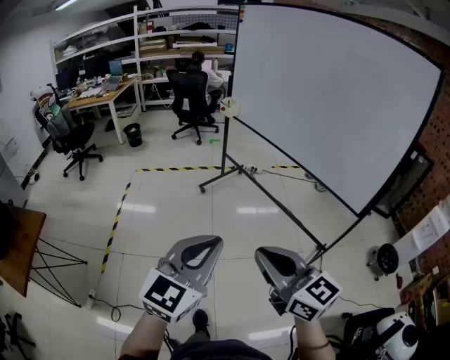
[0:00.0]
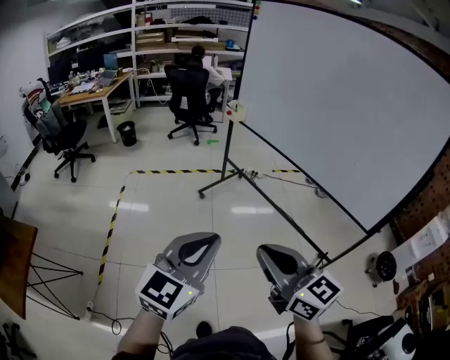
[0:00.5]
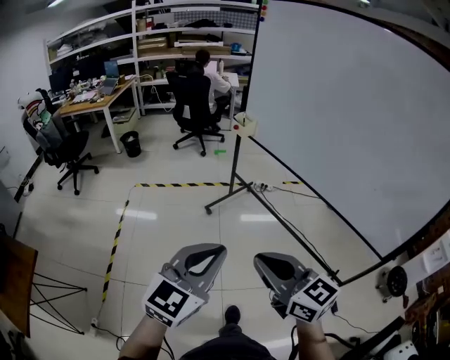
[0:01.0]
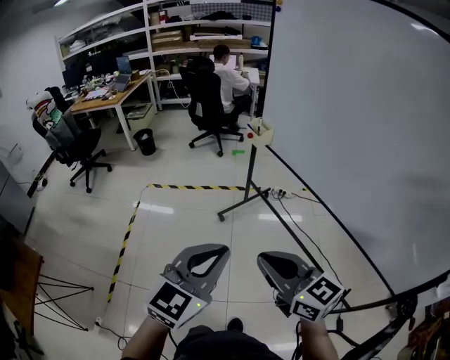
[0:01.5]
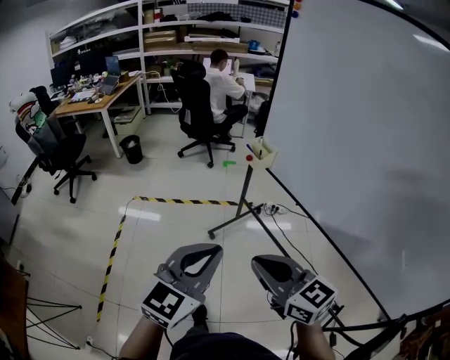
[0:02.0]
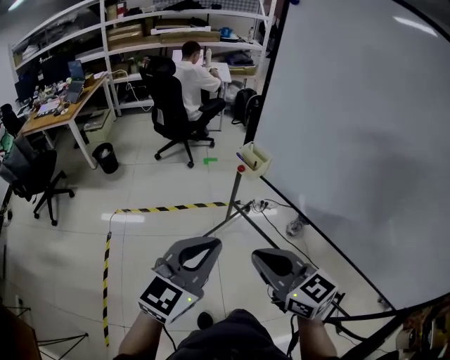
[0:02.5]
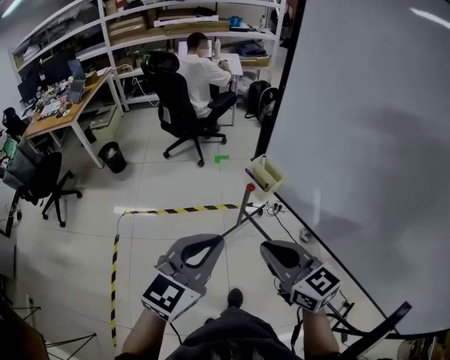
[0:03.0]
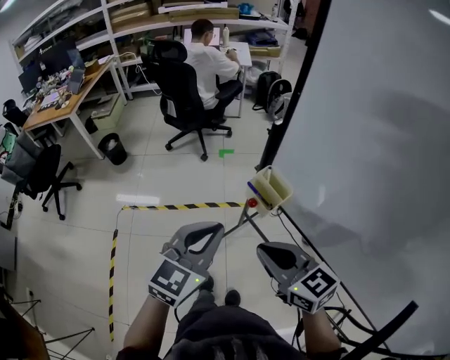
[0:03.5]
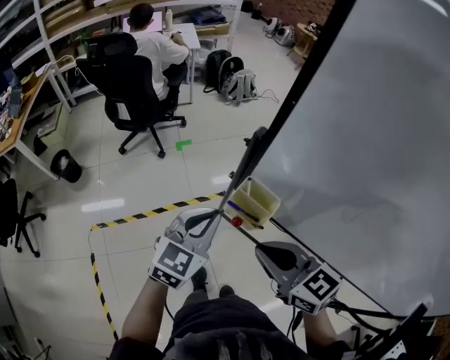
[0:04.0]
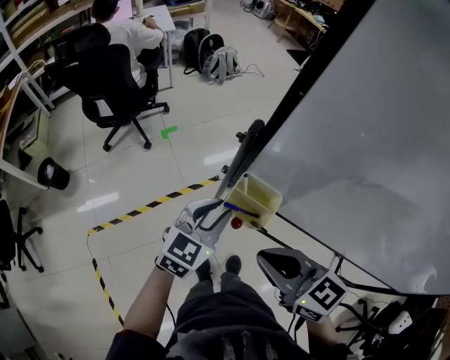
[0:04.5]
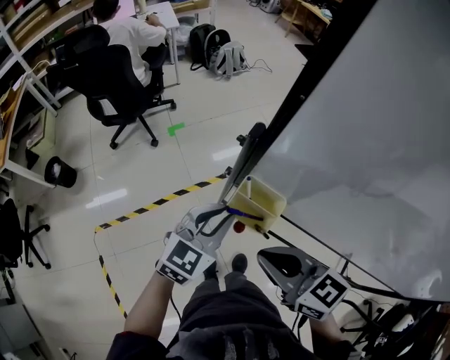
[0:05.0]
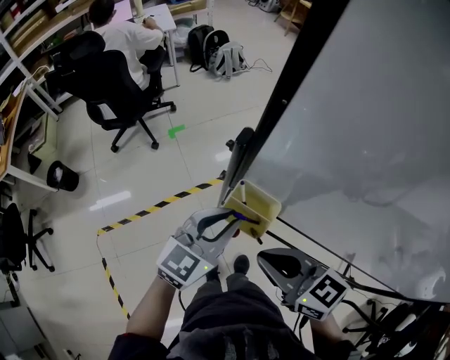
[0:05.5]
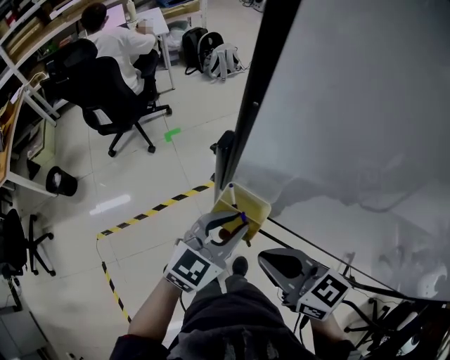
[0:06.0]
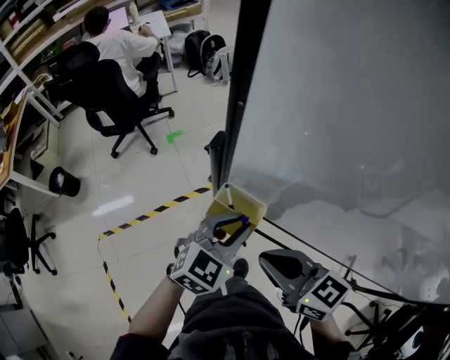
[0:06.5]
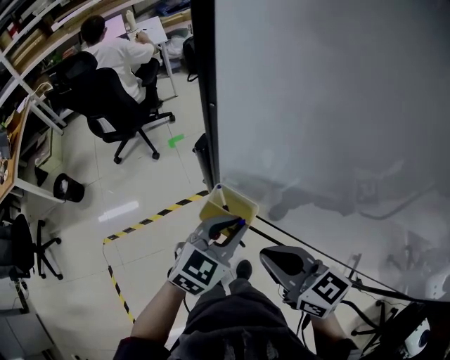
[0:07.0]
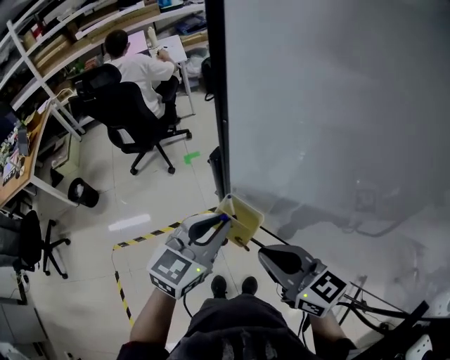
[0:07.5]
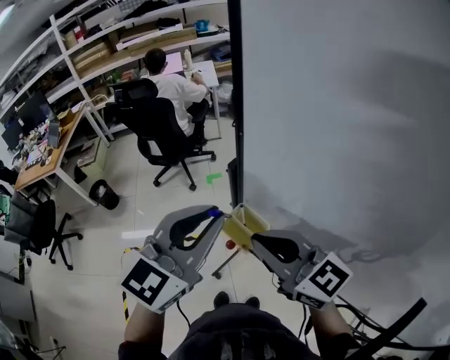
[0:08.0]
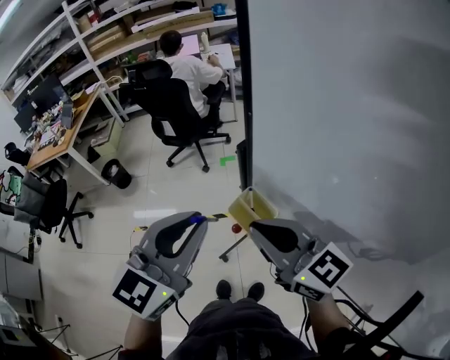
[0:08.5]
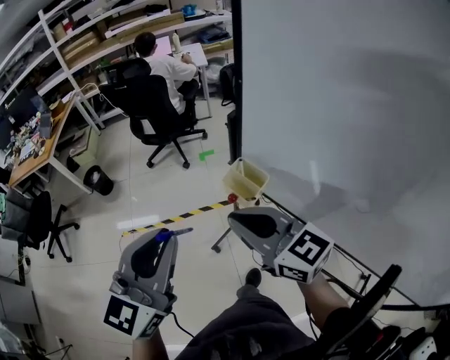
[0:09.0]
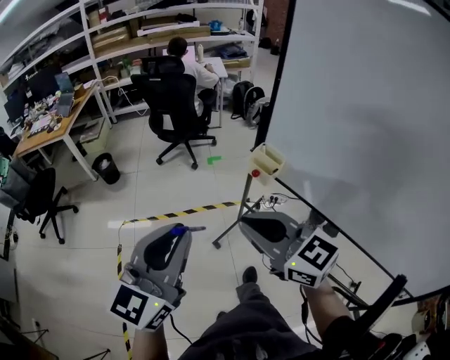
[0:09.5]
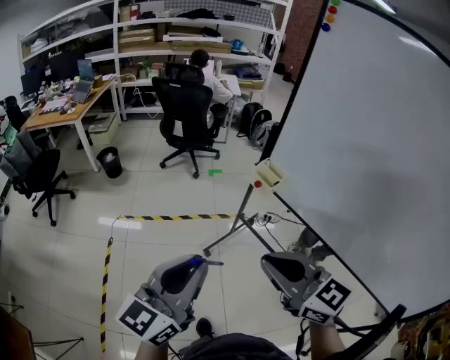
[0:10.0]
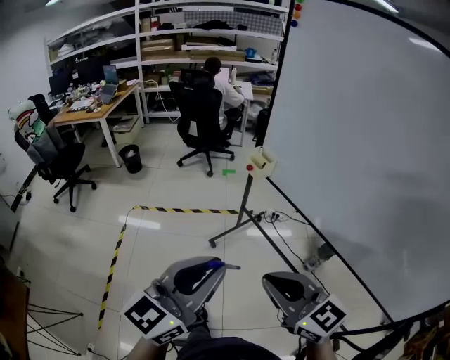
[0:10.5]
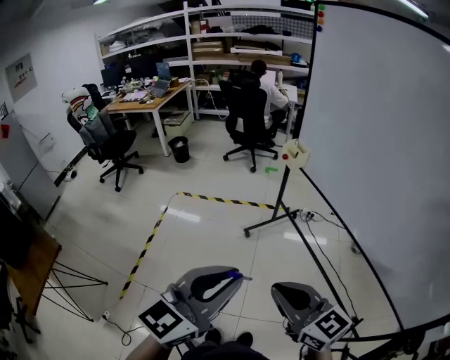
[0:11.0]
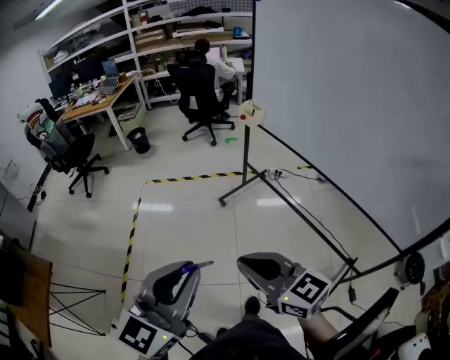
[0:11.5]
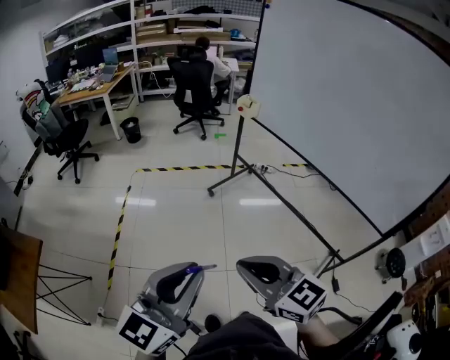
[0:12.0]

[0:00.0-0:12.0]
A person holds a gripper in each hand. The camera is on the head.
0:00.0 to 0:02.0: The two grippers travel together, forward, about 60 cm.
0:02.0 to 0:04.0: The pair of grippers is taken forward, approximately 50 cm. The right gripper swivels about 20 degrees. The left gripper changes its angle by some 20 degrees.
0:04.0 to 0:06.0: The left gripper goes some 10 cm to the right.
0:06.0 to 0:08.0: The left gripper heads upward, covering roughly 25 cm, and swivels approximately 30 degrees. The right gripper moves upward, some 15 cm, and turns by about 30 degrees.
0:08.0 to 0:10.0: Both grippers travel together backward and to the left, roughly 40 cm. The left gripper changes its angle by some 20 degrees.
0:10.0 to 0:12.0: The two grippers travel together, backward, approximately 50 cm.

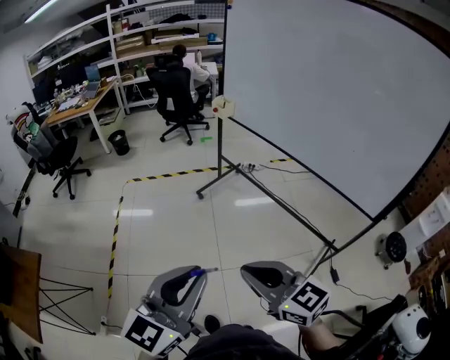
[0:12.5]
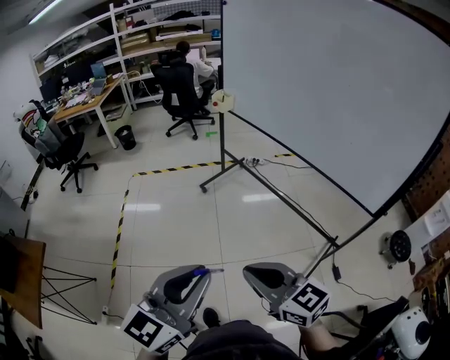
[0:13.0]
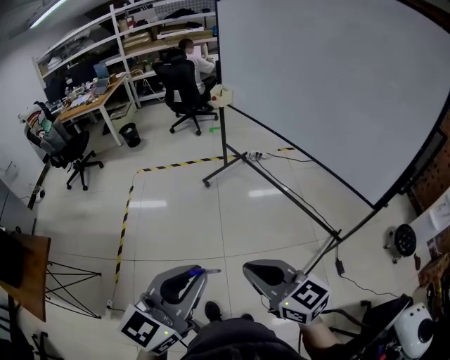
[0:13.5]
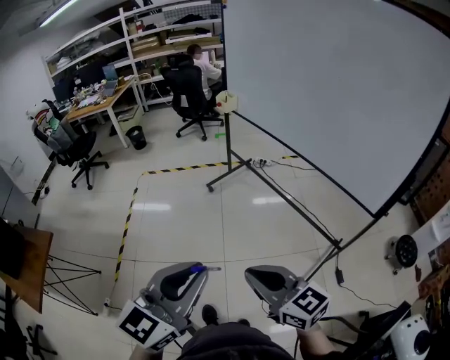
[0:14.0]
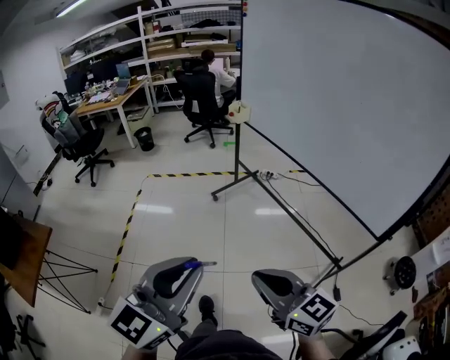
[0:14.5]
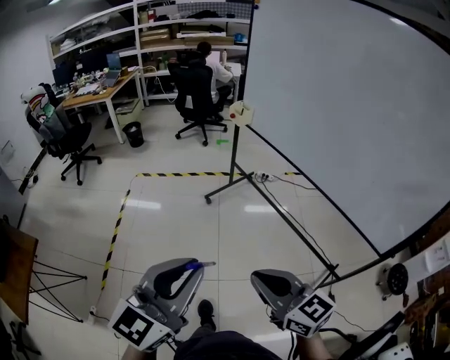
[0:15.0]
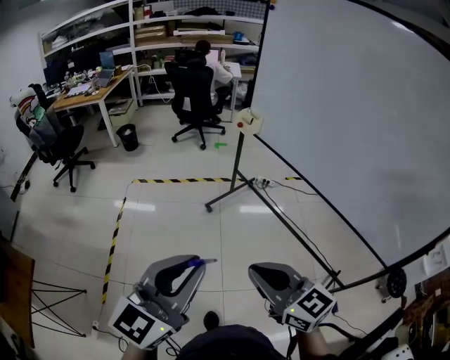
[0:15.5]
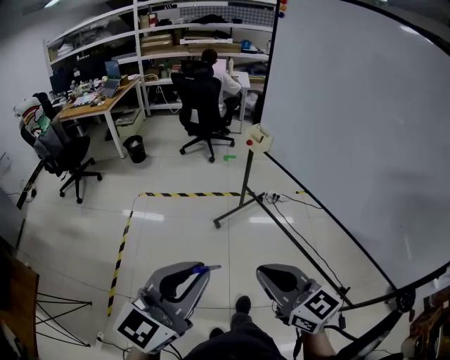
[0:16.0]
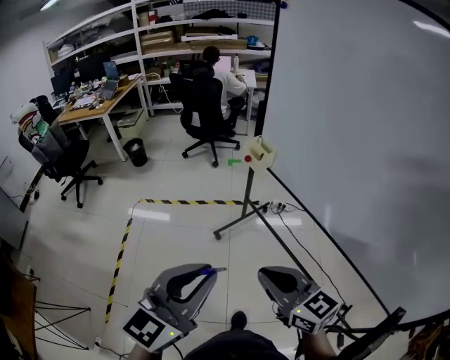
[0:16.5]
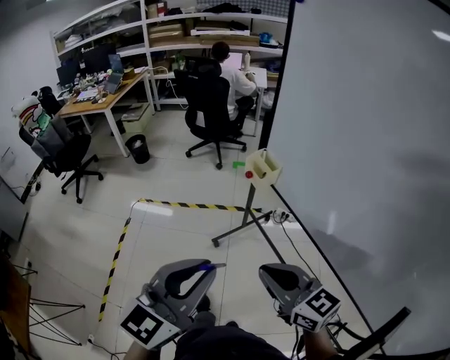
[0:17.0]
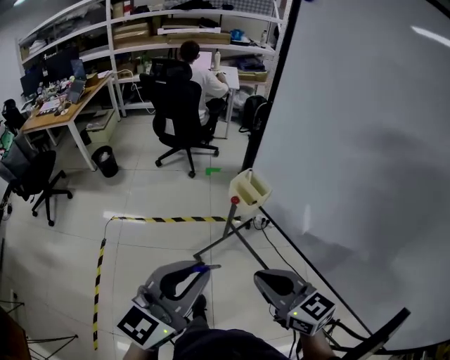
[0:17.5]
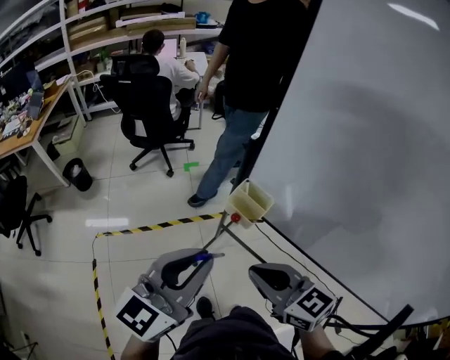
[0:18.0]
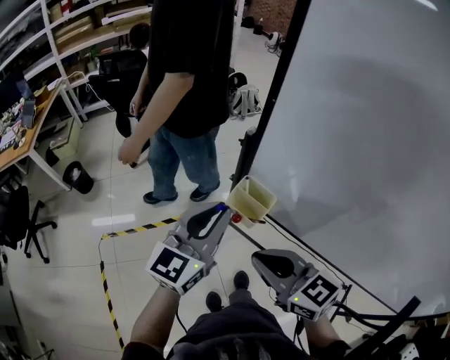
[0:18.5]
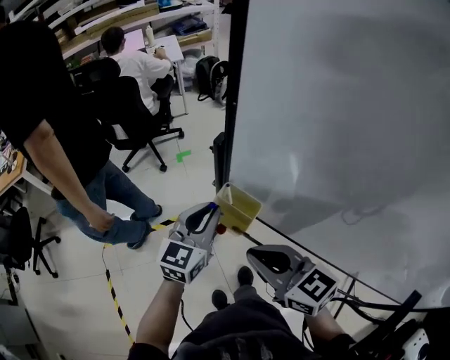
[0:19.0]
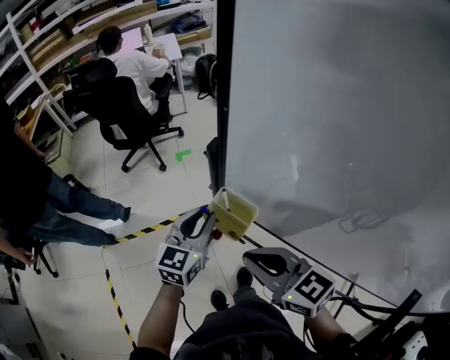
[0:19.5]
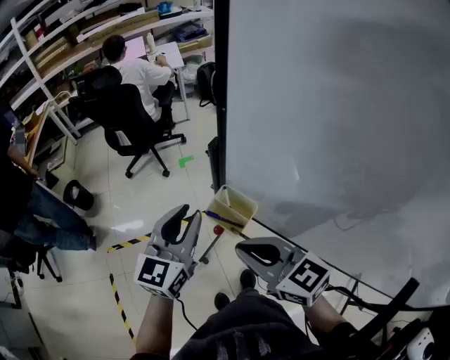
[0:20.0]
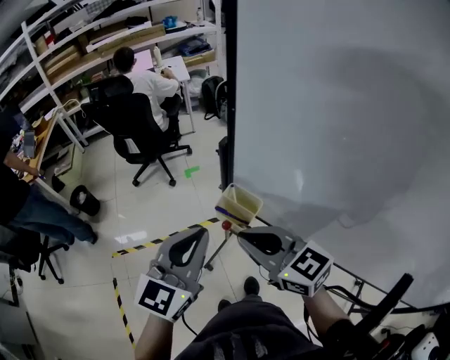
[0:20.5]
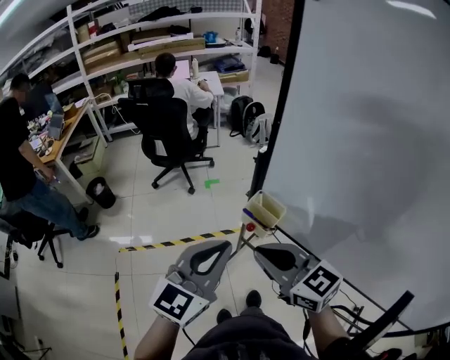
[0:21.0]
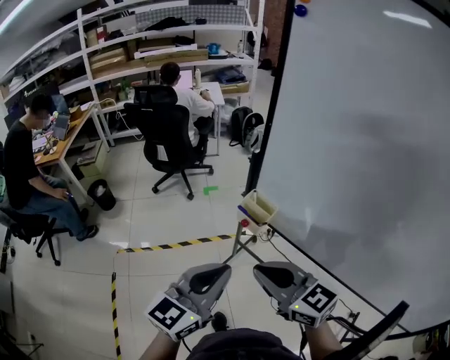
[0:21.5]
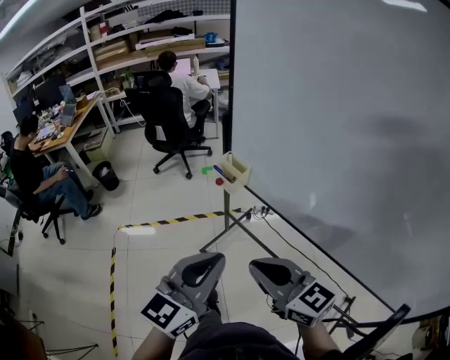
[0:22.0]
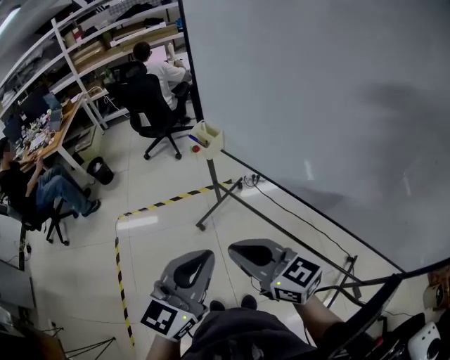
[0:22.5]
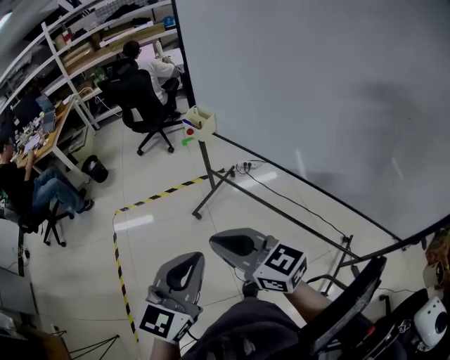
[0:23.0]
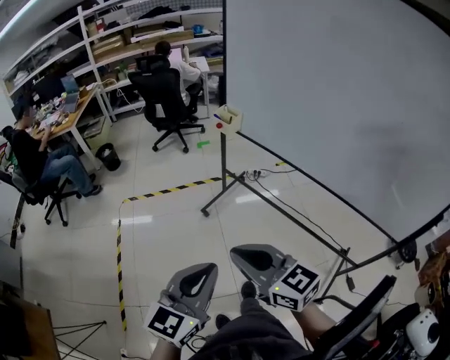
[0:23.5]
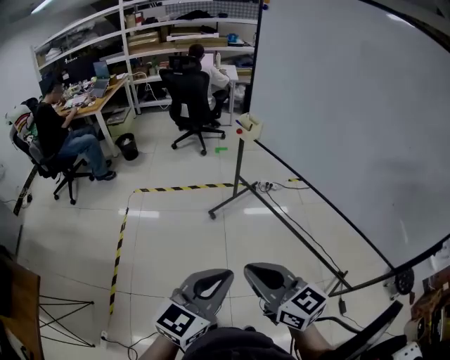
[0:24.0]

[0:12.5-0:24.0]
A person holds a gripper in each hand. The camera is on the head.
0:12.5 to 0:14.5: The two grippers go roughly 10 cm to the right.
0:14.5 to 0:16.5: The two grippers travel together, forward, some 50 cm.
0:16.5 to 0:18.5: Both grippers move forward, roughly 50 cm.
0:18.5 to 0:20.0: The two grippers go about 5 cm forward. The left gripper travels downward and back again, some 15 cm each way.
0:20.0 to 0:22.0: Both grippers travel together backward, about 35 cm. The left gripper closes up.
0:22.0 to 0:24.0: Both grippers travel together backward, about 35 cm.

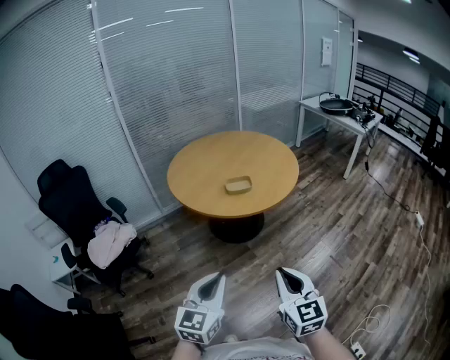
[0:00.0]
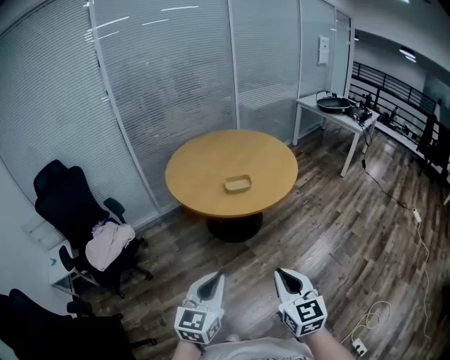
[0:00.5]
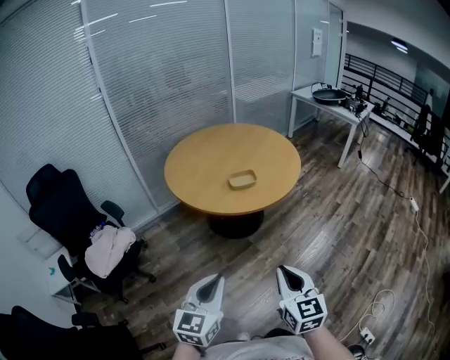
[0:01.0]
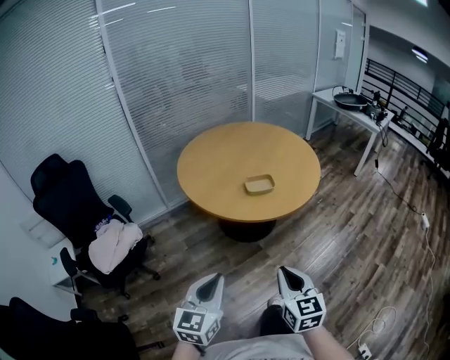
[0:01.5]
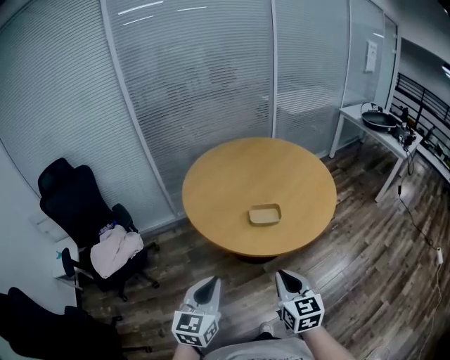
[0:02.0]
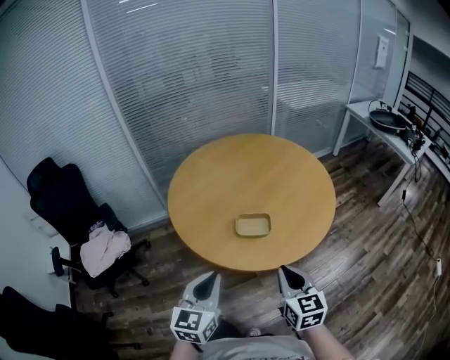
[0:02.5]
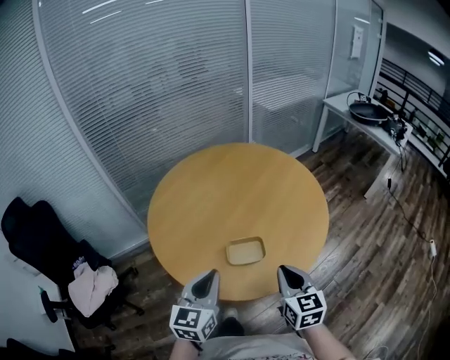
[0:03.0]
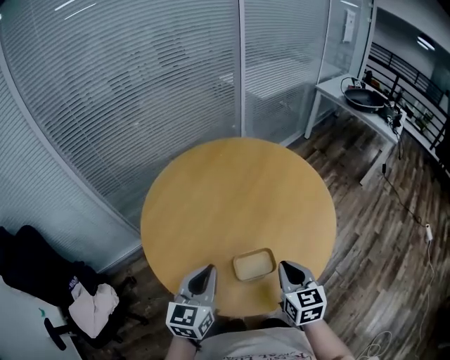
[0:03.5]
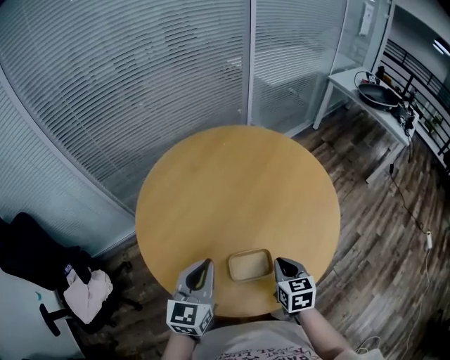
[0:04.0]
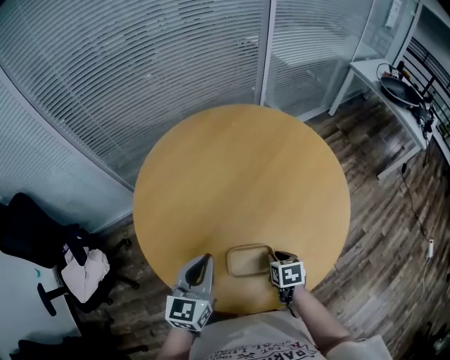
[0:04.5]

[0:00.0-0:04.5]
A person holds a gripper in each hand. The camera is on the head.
0:00.0 to 0:02.0: Both grippers travel together forward, about 30 cm.
0:02.0 to 0:04.5: The pair of grippers is taken forward, about 40 cm. The right gripper goes about 25 cm downward, and angles its fingers downward, by some 40 degrees.
